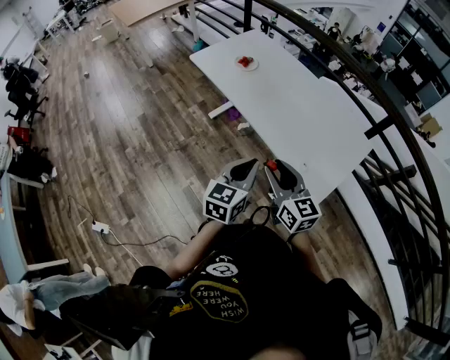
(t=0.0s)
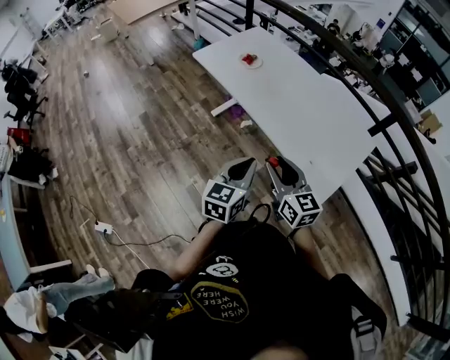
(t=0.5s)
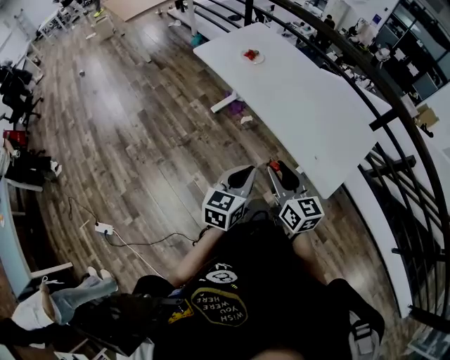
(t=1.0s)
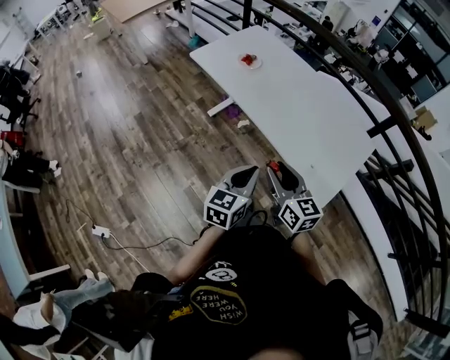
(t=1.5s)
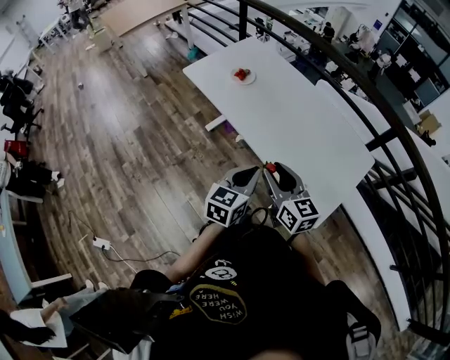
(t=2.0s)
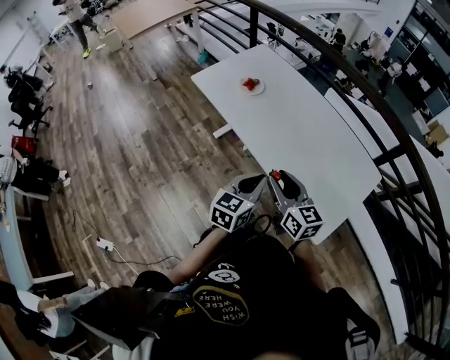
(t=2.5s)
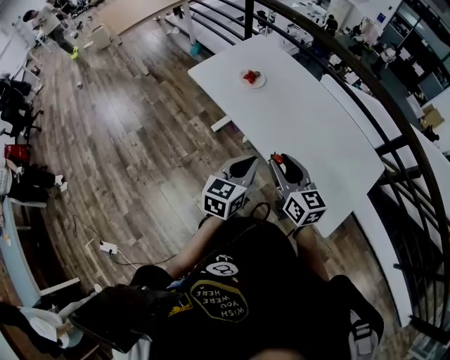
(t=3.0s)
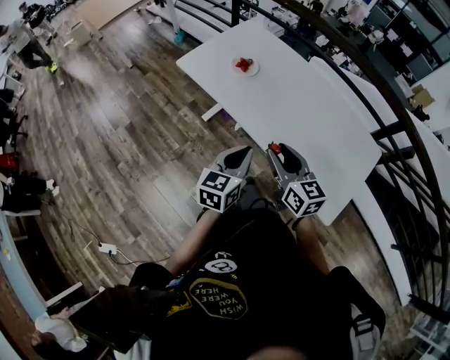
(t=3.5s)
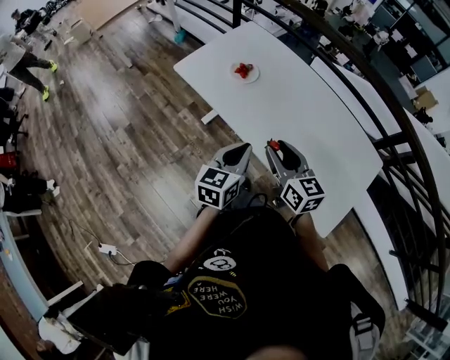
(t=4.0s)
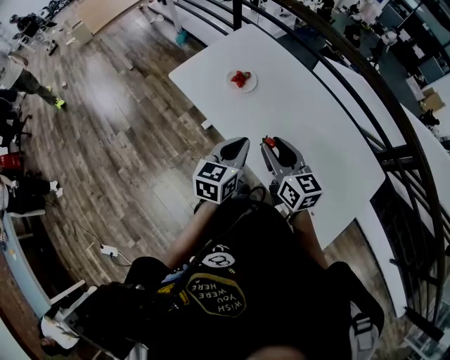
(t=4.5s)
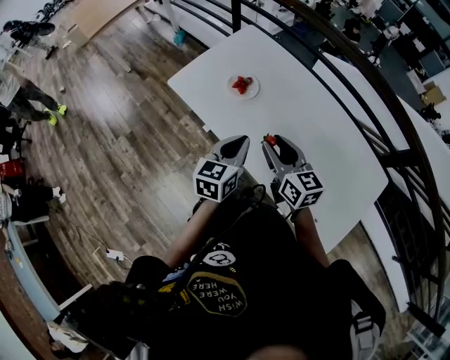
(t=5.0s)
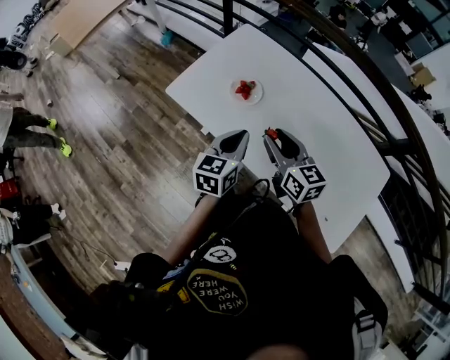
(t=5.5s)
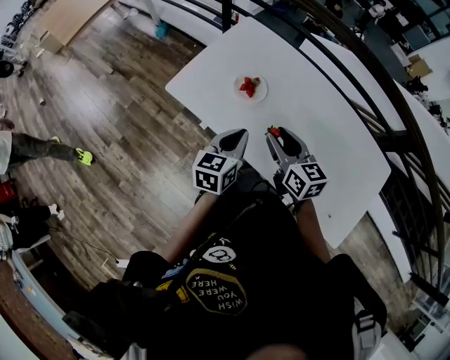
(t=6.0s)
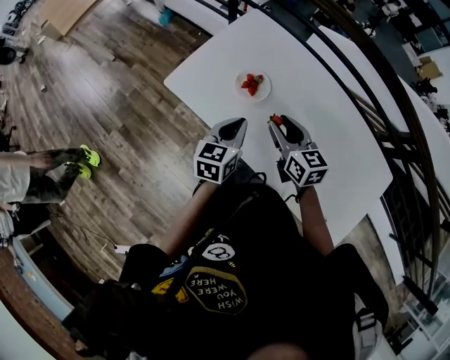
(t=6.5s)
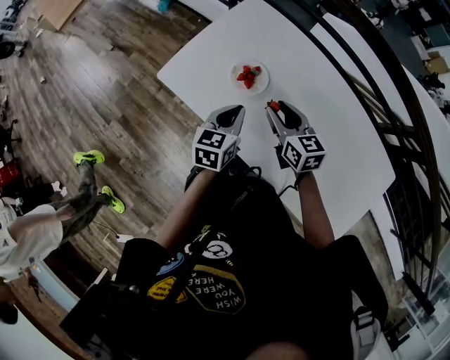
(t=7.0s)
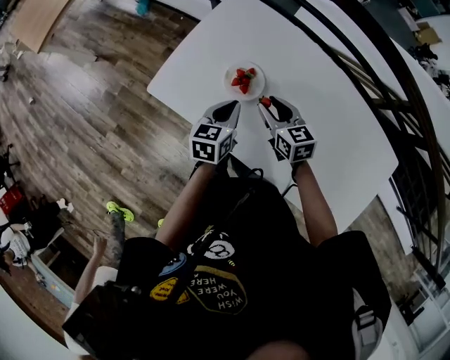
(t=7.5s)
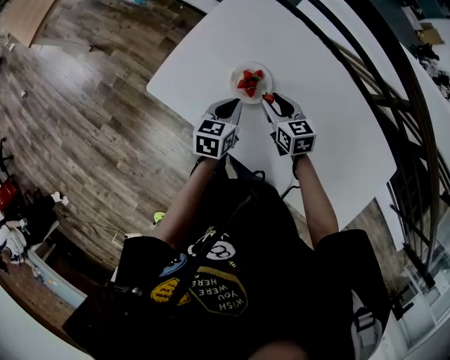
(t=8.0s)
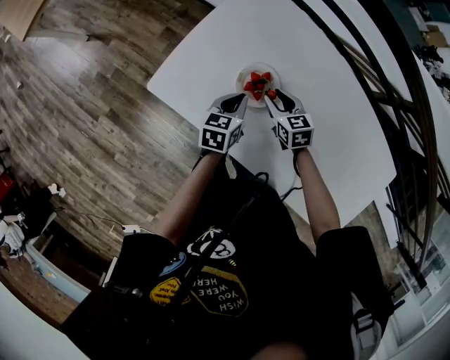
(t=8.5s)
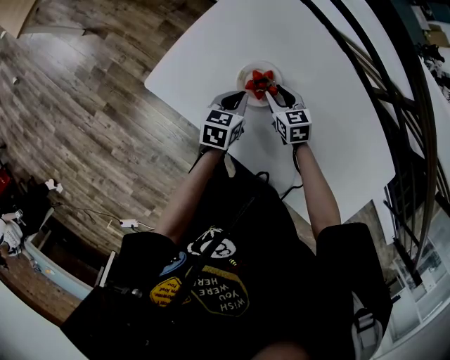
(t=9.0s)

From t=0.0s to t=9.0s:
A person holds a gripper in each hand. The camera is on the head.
From t=0.0s to t=2.0s: The grippers both shift forward by about 10 cm.
From t=2.0s to t=4.5s: Both grippers move forward, about 25 cm.
From t=4.5s to t=7.0s: Both grippers travel together forward and downward, about 25 cm.
From t=7.0s to t=9.0s: The two grippers go approximately 20 cm downward and forward. The right gripper turns by approximately 20 degrees.

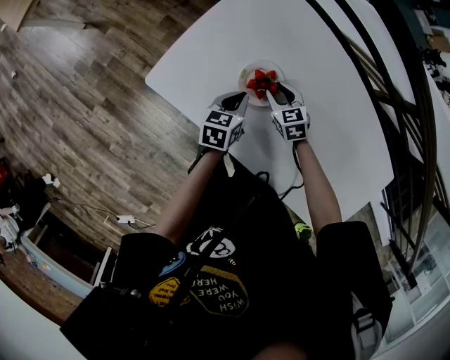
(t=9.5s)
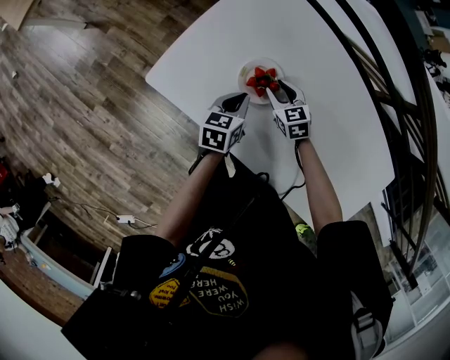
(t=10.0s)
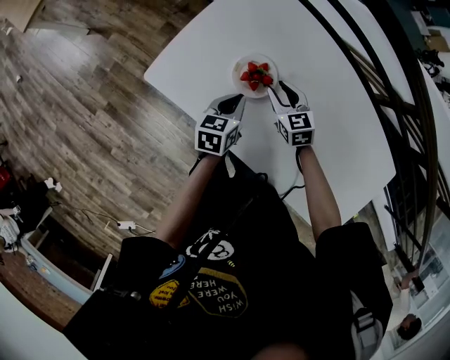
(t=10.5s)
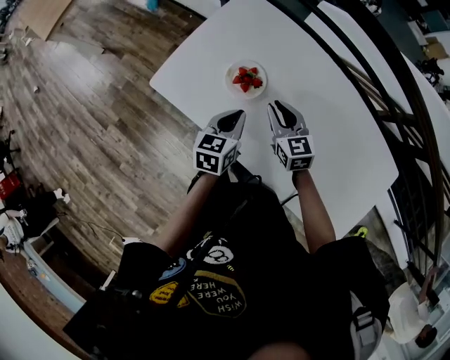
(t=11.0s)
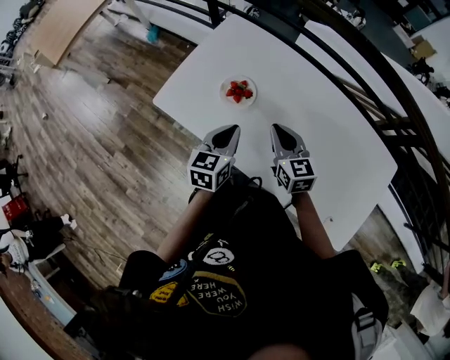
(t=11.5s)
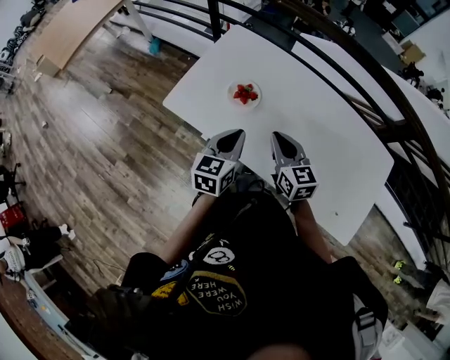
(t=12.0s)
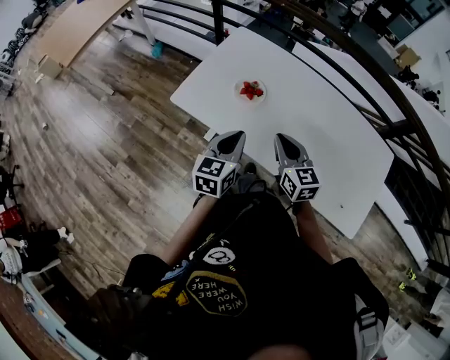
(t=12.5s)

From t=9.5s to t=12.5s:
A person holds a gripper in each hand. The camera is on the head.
From t=9.5s to t=11.0s: Both grippers move upward and backward, some 15 cm. The right gripper rotates roughly 30 degrees.
From t=11.0s to t=12.5s: The two grippers go roughly 20 cm backward and upward.

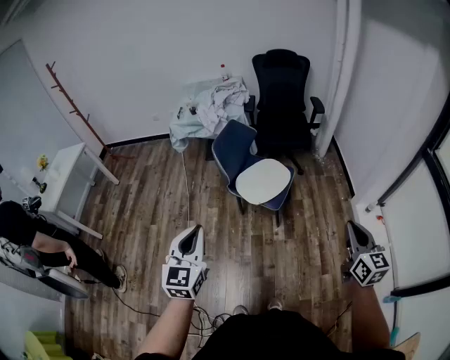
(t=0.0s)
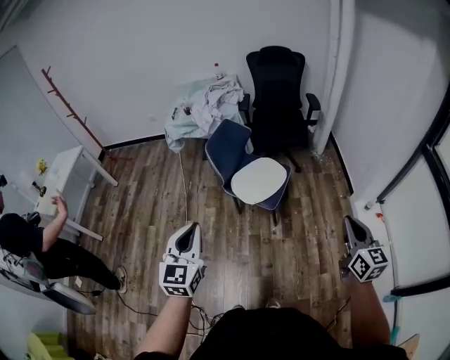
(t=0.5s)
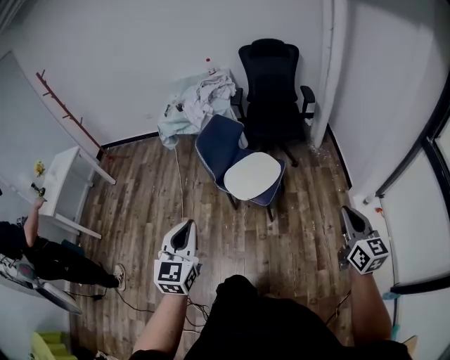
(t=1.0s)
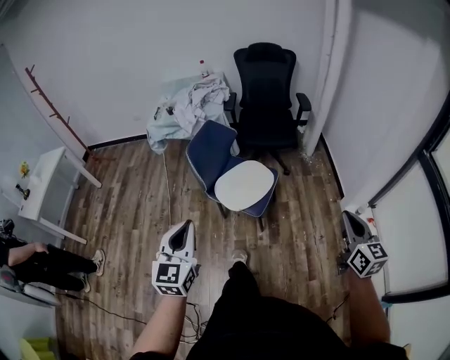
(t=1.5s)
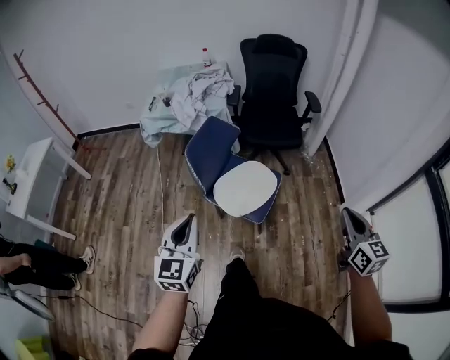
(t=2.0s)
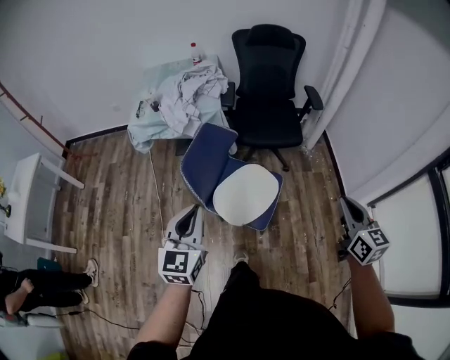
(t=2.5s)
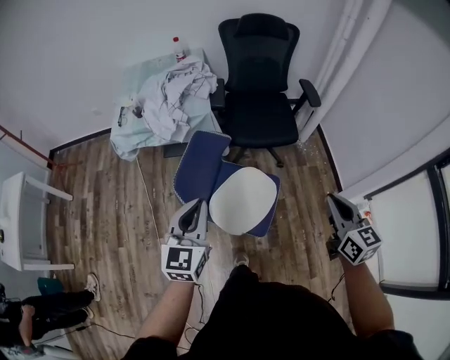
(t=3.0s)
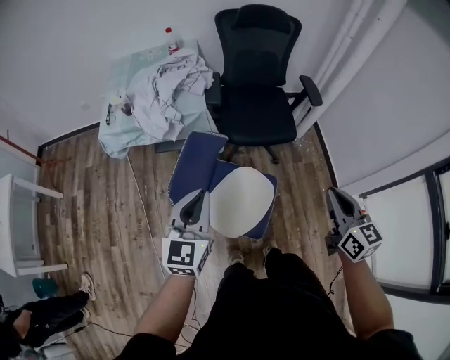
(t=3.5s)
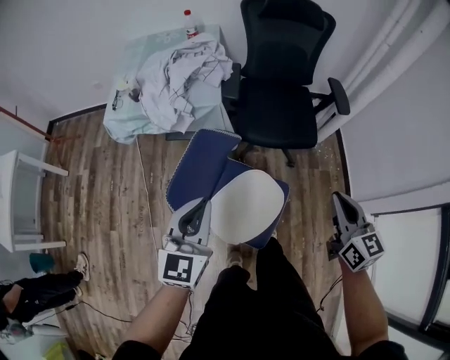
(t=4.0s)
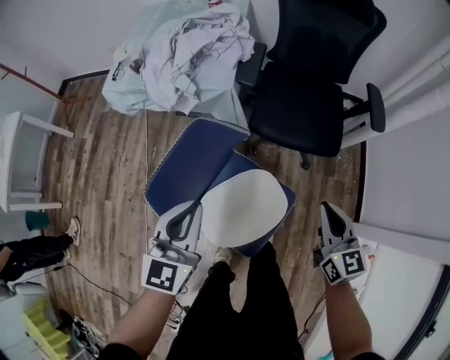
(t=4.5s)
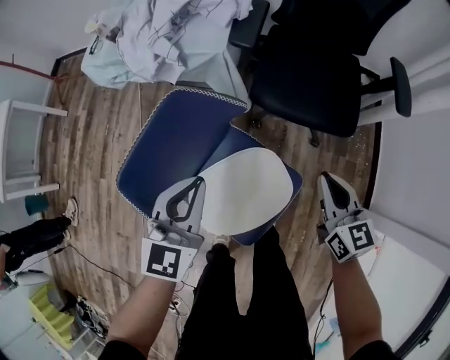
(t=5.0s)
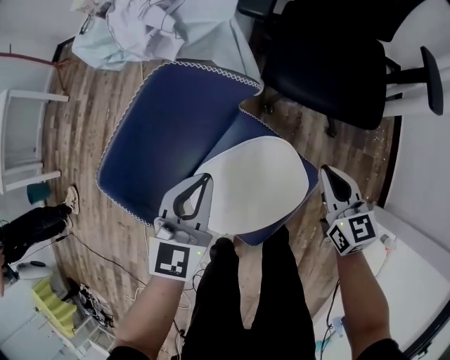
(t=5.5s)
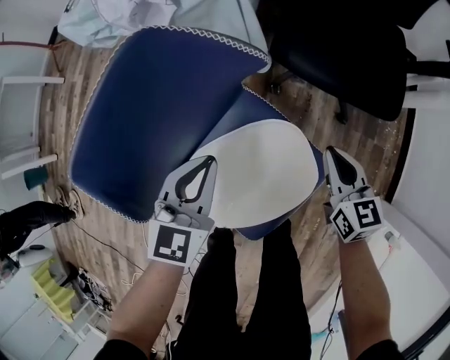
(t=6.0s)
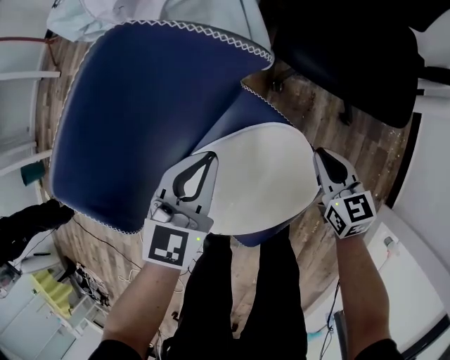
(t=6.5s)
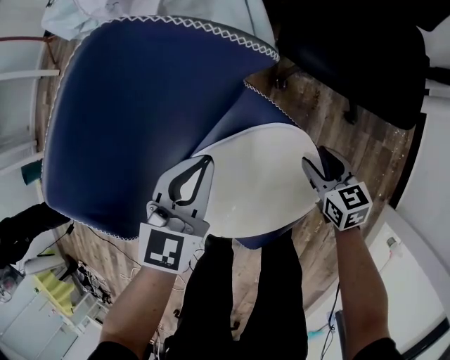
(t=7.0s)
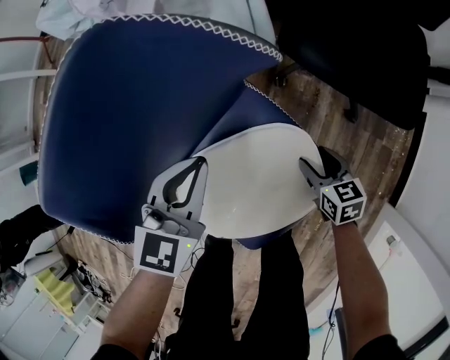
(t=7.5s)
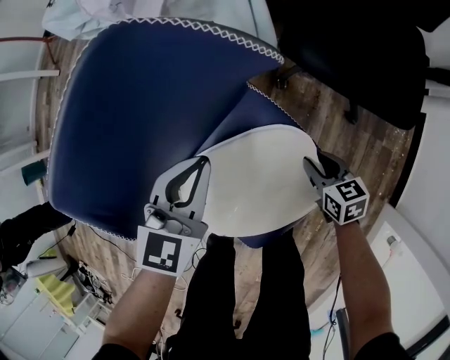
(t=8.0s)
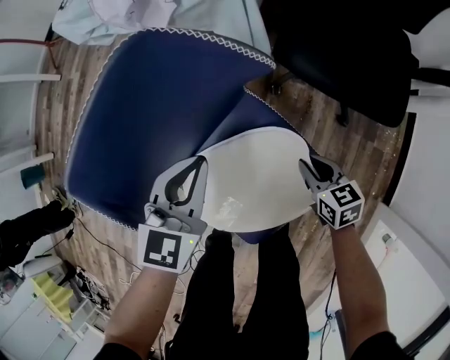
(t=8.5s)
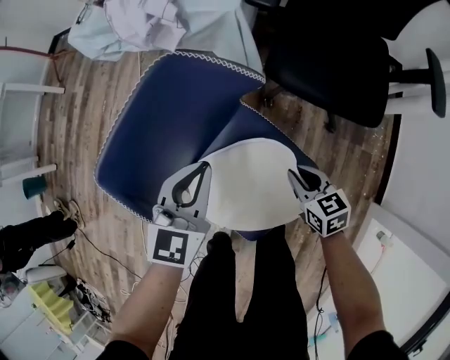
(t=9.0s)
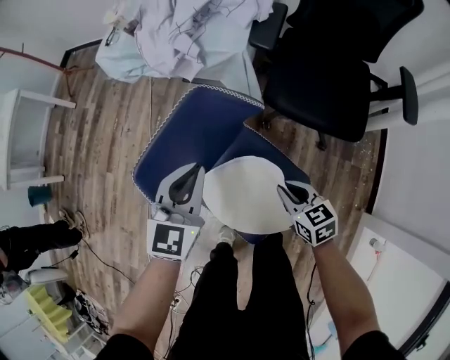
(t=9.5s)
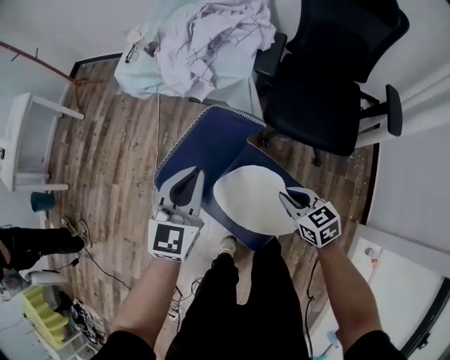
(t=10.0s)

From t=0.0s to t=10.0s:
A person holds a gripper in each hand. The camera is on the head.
From t=0.0s to t=2.0s: The grippers both shift forward by about 20 cm.
From t=2.0s to t=4.0s: Both grippers travel together forward, some 35 cm.
From t=4.0s to t=6.0s: The right gripper is displaced downward and forward by approximately 40 cm, and changes its angle by about 20 degrees; the left gripper is displaced downward by roughly 30 cm, and turns by about 20 degrees.
From t=6.0s to t=8.0s: The right gripper heads downward, covering some 15 cm, swivels roughly 30 degrees, and opens. Meanwhile the left gripper shifts by approximately 5 cm.
From t=8.0s to t=10.0s: The two grippers go about 25 cm upward. The right gripper closes up.

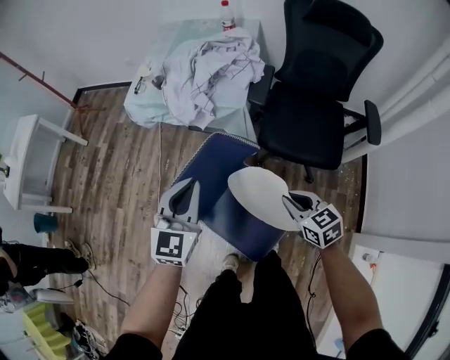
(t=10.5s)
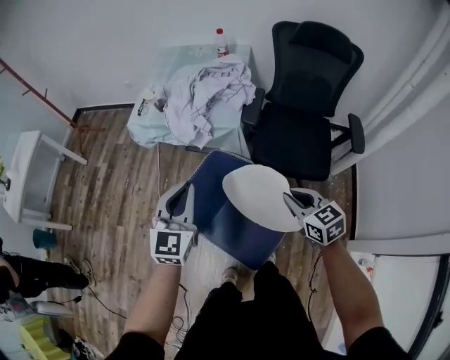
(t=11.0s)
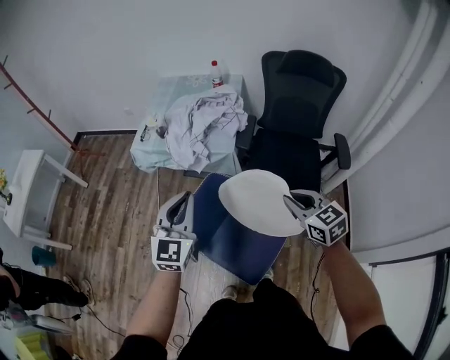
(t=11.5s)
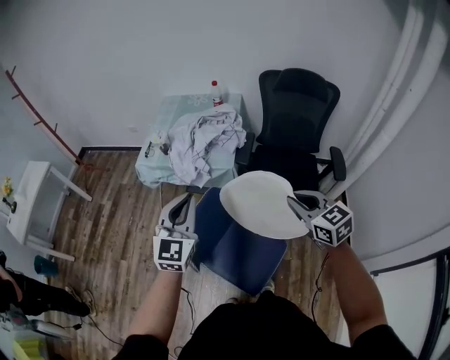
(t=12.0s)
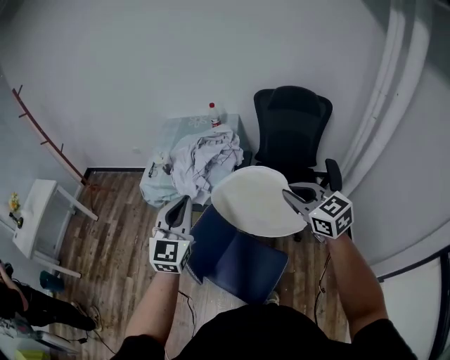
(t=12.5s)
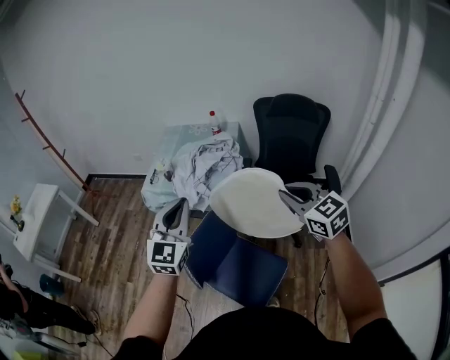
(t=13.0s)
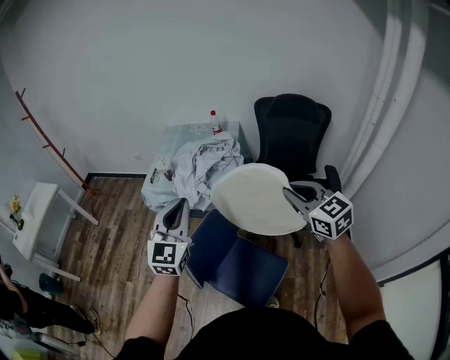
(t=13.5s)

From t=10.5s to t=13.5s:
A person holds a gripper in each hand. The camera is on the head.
From t=10.5s to t=12.0s: The right gripper shifts approximately 25 cm upward, while the left gripper moves upward, about 15 cm.
From t=12.0s to t=13.5s: The grippers both shift upward by about 10 cm.

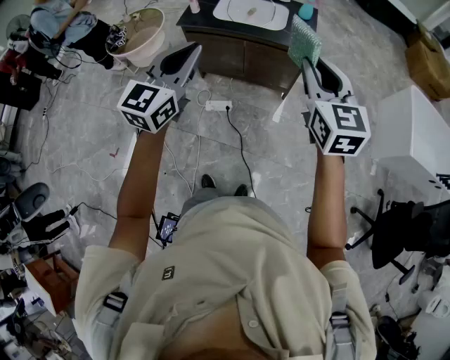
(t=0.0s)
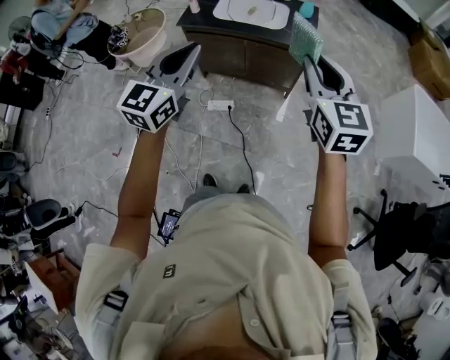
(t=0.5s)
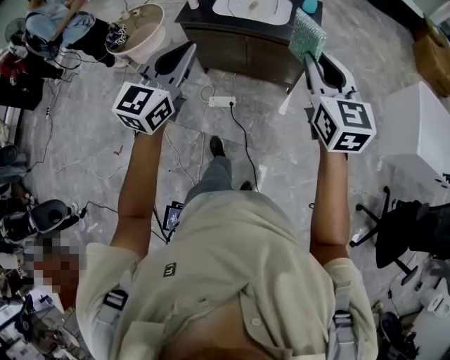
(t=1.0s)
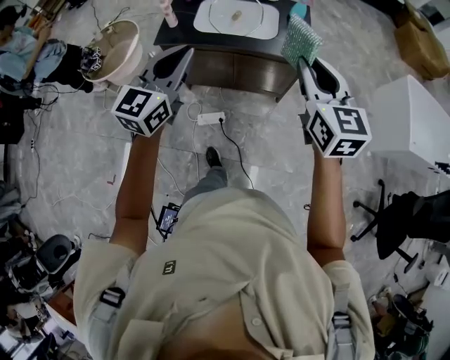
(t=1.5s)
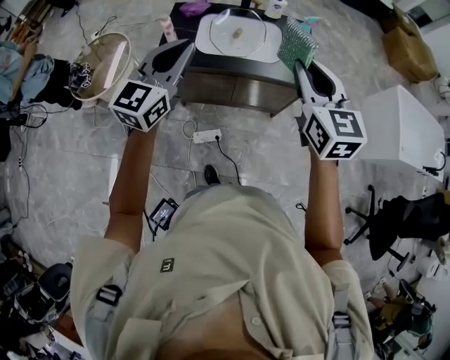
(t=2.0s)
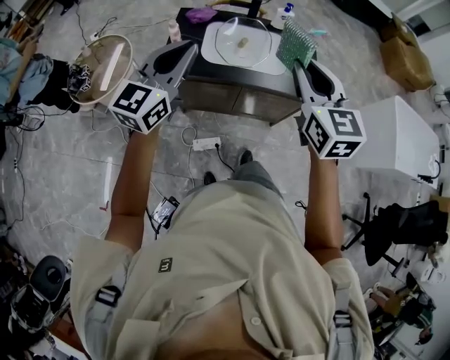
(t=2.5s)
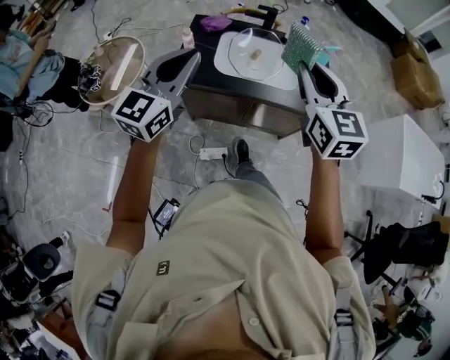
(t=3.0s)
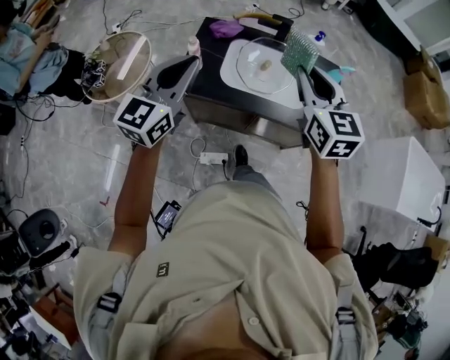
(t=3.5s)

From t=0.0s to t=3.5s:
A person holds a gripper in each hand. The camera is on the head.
From t=0.0s to t=2.0s: The two grippers go about 35 cm forward and to the left.
From t=2.0s to t=3.5s: The two grippers go approximately 20 cm forward and to the left.
